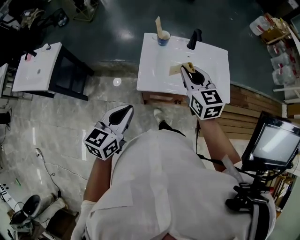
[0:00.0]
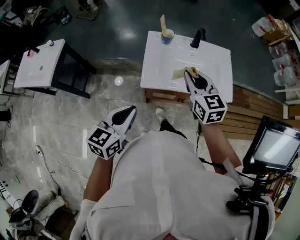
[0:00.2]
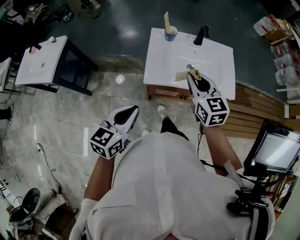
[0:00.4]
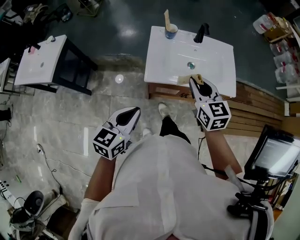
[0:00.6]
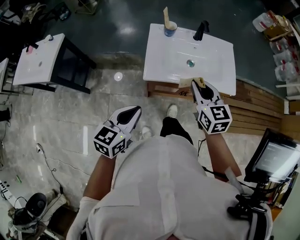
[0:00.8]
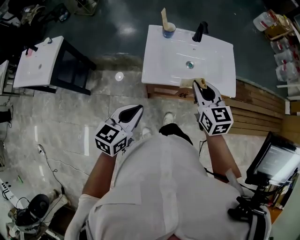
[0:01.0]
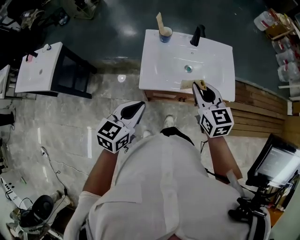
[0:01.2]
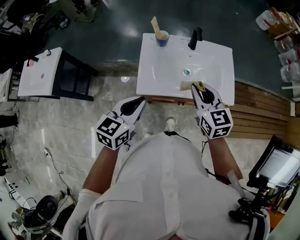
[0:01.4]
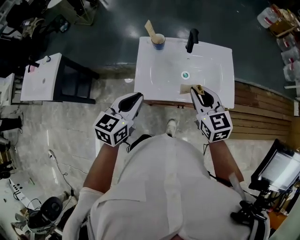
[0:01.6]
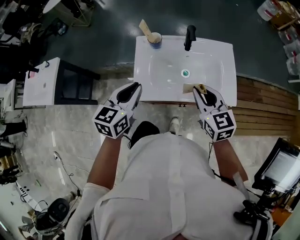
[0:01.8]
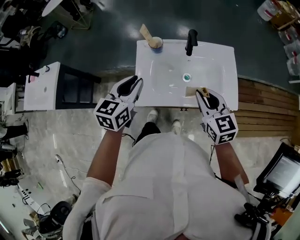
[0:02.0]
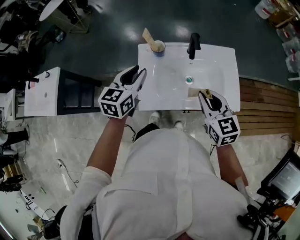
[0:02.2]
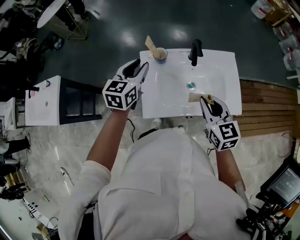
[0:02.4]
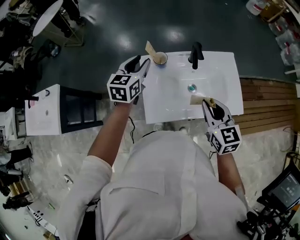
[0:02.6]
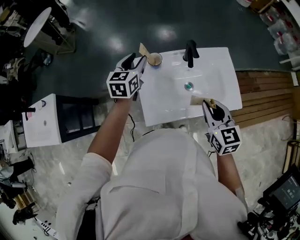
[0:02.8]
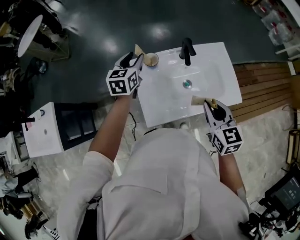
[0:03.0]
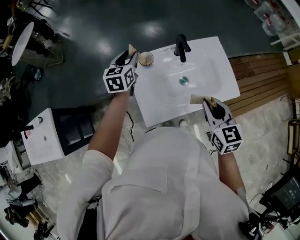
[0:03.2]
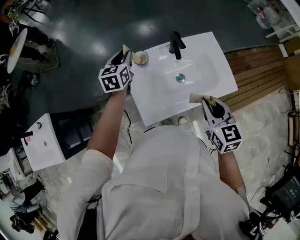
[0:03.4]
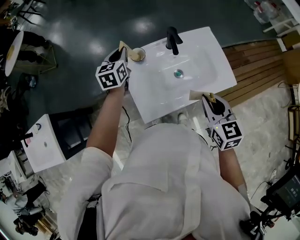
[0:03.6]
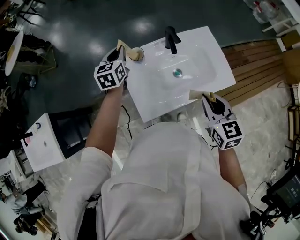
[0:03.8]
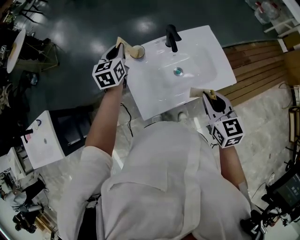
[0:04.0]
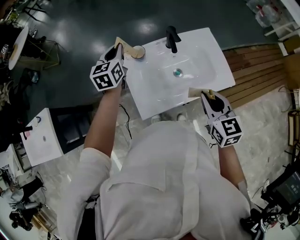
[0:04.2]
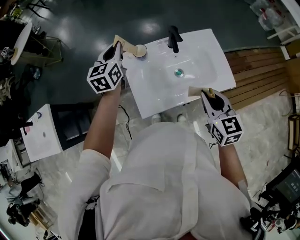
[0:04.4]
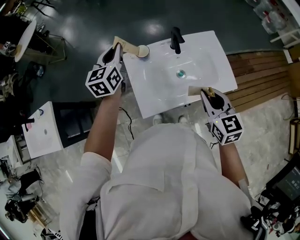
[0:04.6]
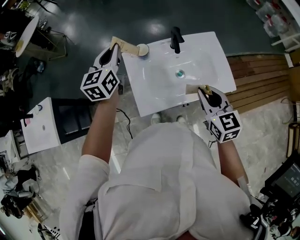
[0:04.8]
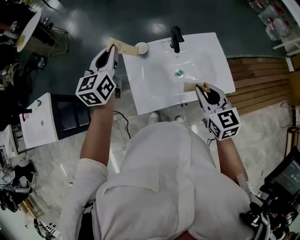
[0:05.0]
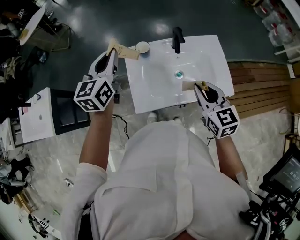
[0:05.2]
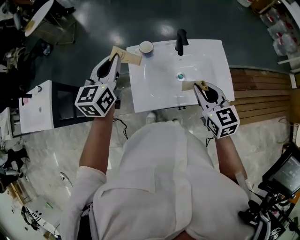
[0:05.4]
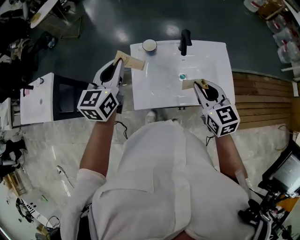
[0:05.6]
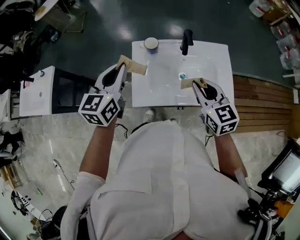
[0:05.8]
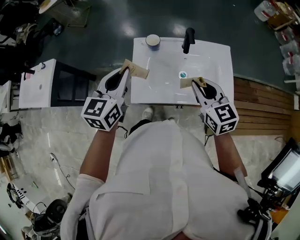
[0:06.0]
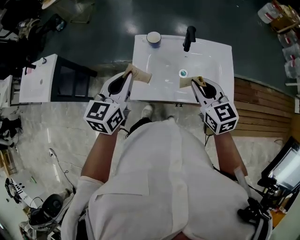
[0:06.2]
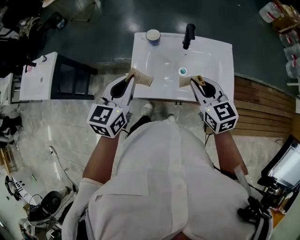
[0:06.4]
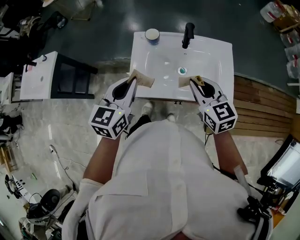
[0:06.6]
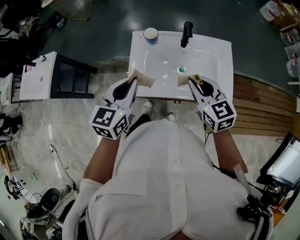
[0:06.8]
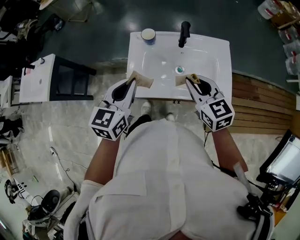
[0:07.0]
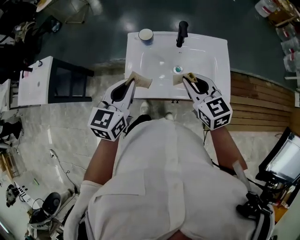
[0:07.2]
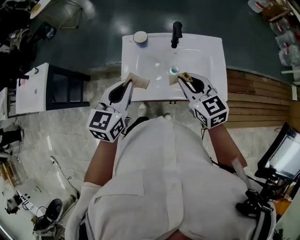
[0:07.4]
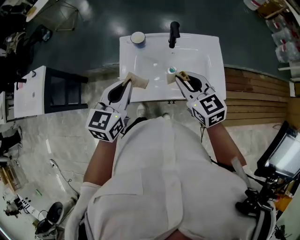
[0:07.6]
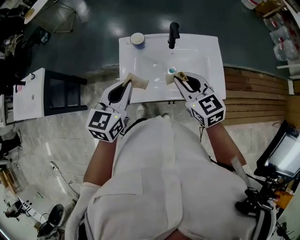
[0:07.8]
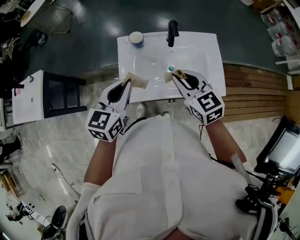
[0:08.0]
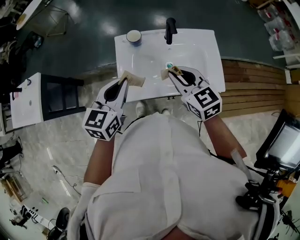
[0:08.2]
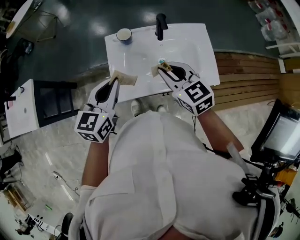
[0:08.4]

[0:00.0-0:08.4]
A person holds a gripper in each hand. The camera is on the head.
0:00.0 to 0:01.4: The right gripper shifts roughly 5 cm to the right, and reaches some 10 cm backward, then returns, while the left gripper shifts some 10 cm forward and to the right.
0:01.4 to 0:02.8: The right gripper is displaced forward by approximately 5 cm; the left gripper travels forward by roughly 35 cm, and opens up.
0:02.8 to 0:04.2: The left gripper closes up.
0:04.2 to 0:05.6: The left gripper goes roughly 20 cm backward and upward, while the right gripper shifts by approximately 5 cm, and rotates approximately 20 degrees.
0:05.6 to 0:07.0: The left gripper heads backward, covering about 15 cm.
0:07.0 to 0:08.4: The right gripper moves approximately 5 cm.

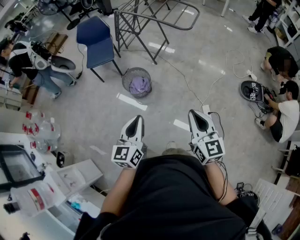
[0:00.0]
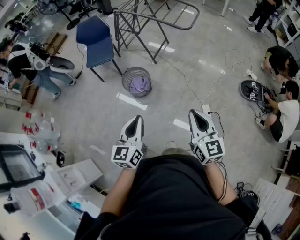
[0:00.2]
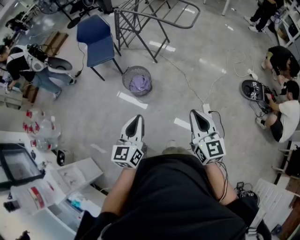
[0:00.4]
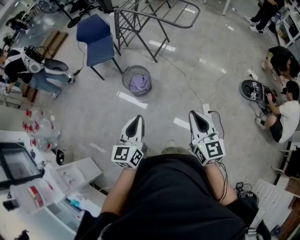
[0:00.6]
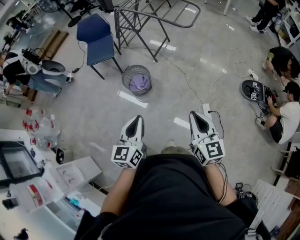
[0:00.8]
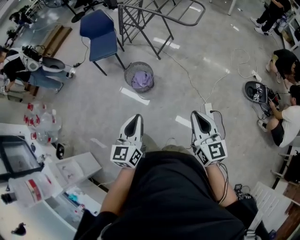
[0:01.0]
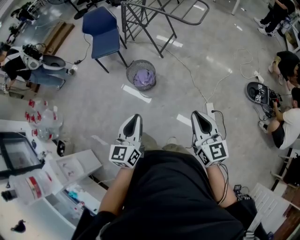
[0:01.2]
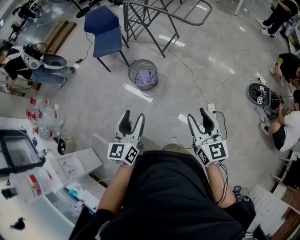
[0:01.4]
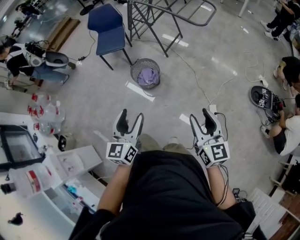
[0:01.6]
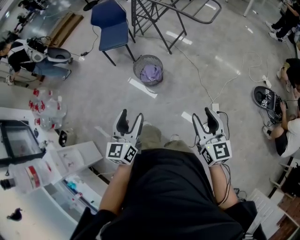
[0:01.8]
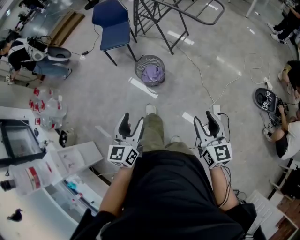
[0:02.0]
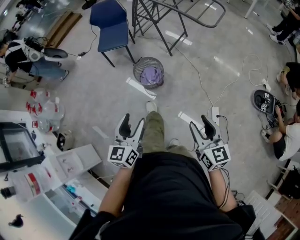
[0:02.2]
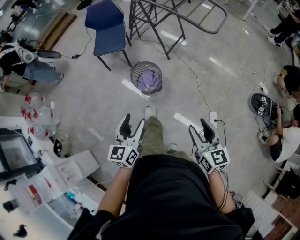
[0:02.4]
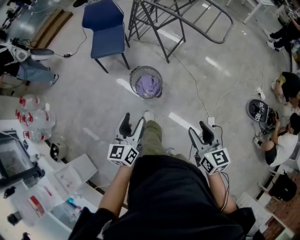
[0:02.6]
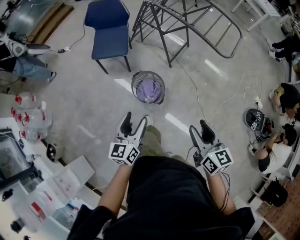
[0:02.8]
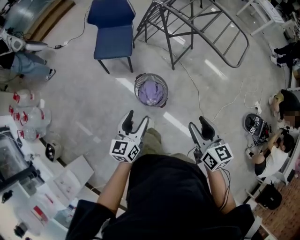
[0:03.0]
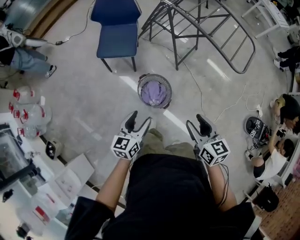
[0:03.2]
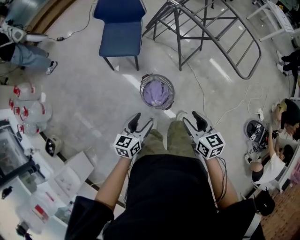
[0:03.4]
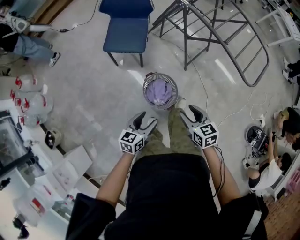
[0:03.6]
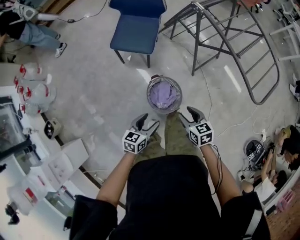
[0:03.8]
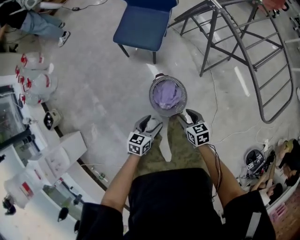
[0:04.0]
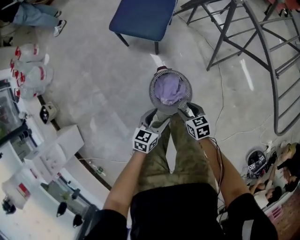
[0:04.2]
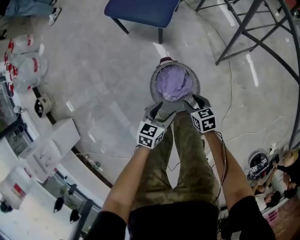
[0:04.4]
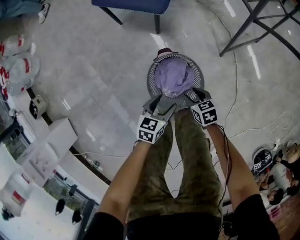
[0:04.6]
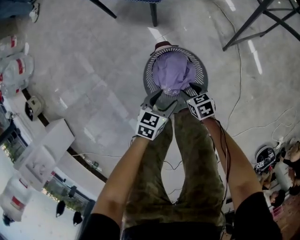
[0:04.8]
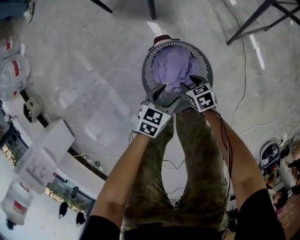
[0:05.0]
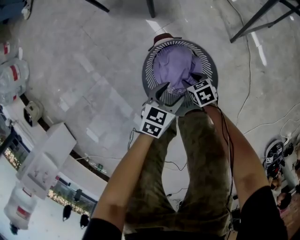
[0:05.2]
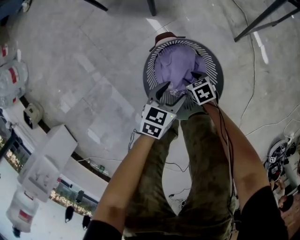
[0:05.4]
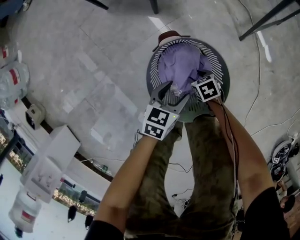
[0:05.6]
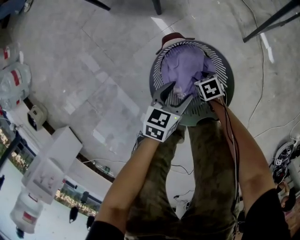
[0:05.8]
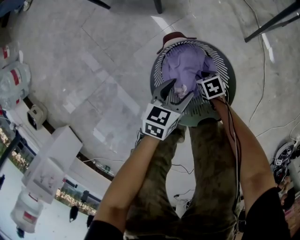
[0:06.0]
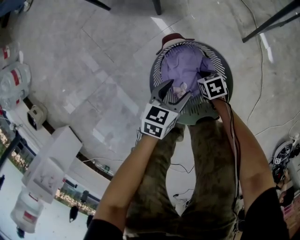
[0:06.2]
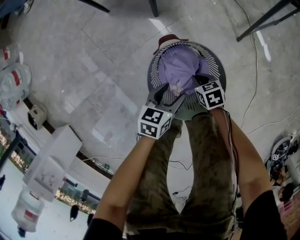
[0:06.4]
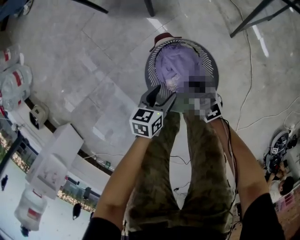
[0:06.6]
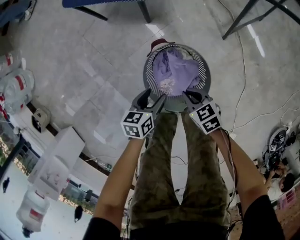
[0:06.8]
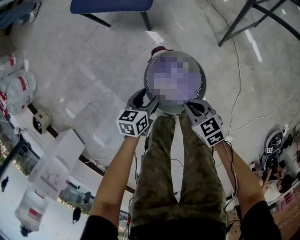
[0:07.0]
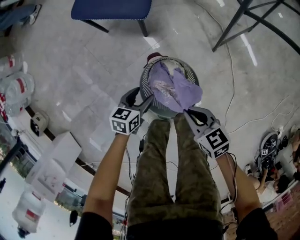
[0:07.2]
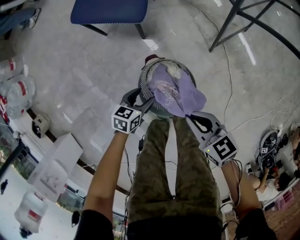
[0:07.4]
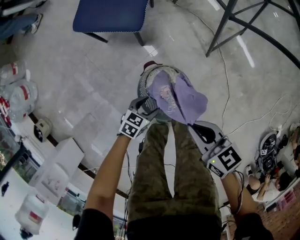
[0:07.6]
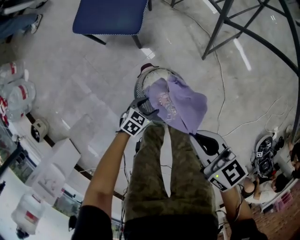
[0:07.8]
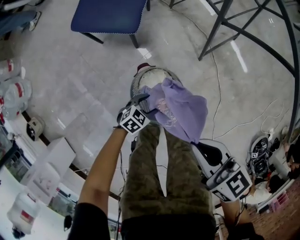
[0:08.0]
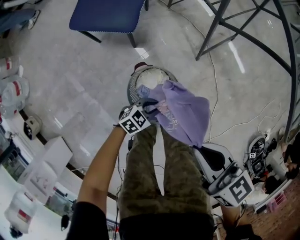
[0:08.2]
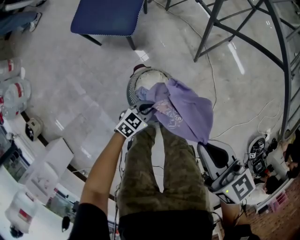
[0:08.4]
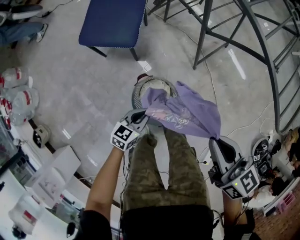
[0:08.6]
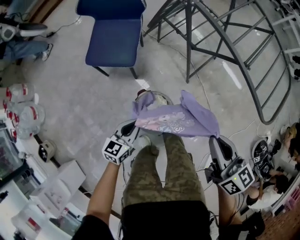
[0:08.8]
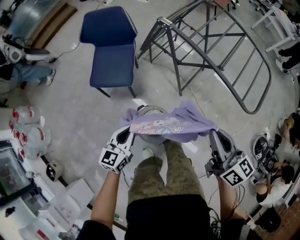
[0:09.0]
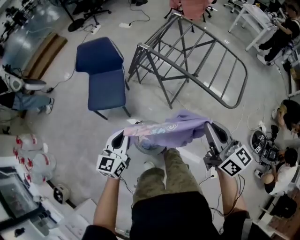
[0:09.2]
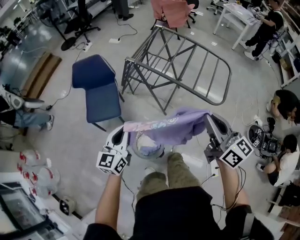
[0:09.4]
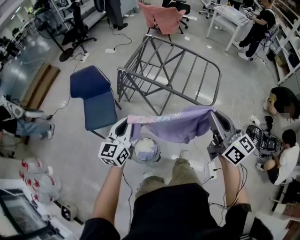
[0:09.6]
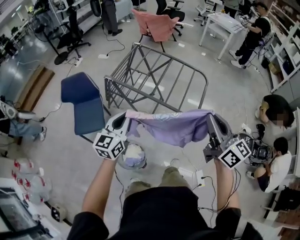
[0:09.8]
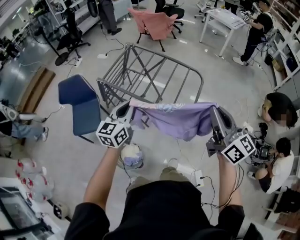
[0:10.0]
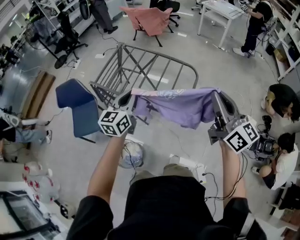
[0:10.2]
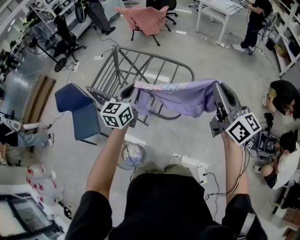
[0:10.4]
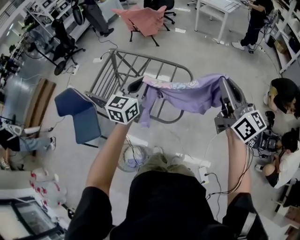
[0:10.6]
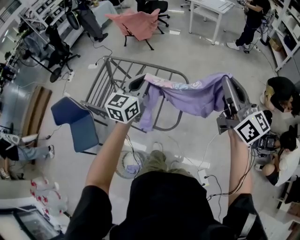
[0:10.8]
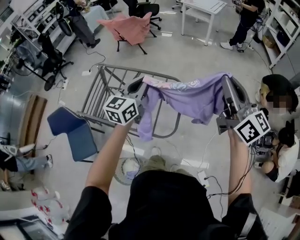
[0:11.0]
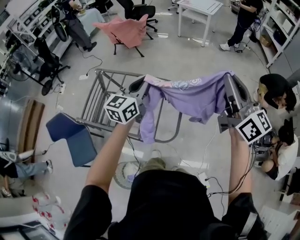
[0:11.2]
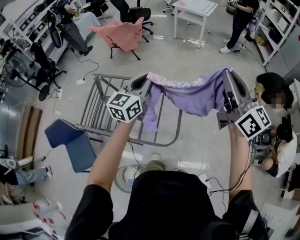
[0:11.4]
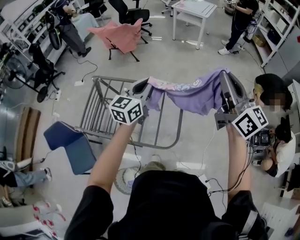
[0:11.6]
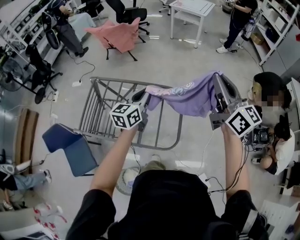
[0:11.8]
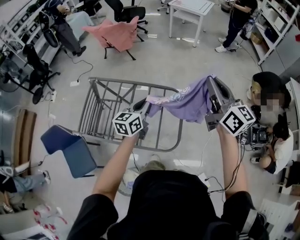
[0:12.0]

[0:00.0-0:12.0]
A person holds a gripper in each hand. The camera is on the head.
0:00.0 to 0:01.6: The left gripper opens. Meanwhile the right gripper opens up.
0:01.6 to 0:03.0: The two grippers go roughly 35 cm forward and to the left.
0:03.0 to 0:04.4: The left gripper heads downward, covering about 40 cm, and turns by about 30 degrees; the right gripper is displaced downward and forward by roughly 60 cm, and turns by about 50 degrees.
0:04.4 to 0:06.0: Both grippers move downward, approximately 30 cm. The right gripper turns by roughly 20 degrees, and closes its fingers.
0:06.0 to 0:07.6: The right gripper goes some 50 cm upward, points its fingers about 40 degrees further upward, and closes up. The left gripper shifts about 15 cm upward, and swivels about 20 degrees.
0:07.6 to 0:09.0: Both grippers travel together upward, roughly 40 cm. The left gripper tips its fingers upward by approximately 30 degrees, and closes up. The right gripper turns by some 40 degrees.
0:09.0 to 0:10.4: The pair of grippers is taken to the right, some 50 cm. The grippers both shift upward by roughly 30 cm. The left gripper turns by some 20 degrees, while the right gripper swivels approximately 30 degrees.
0:10.4 to 0:12.0: The grippers both shift forward by some 20 cm. The left gripper rotates about 20 degrees.

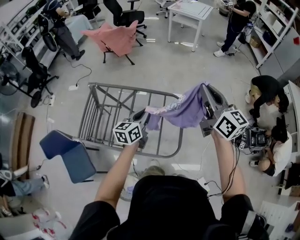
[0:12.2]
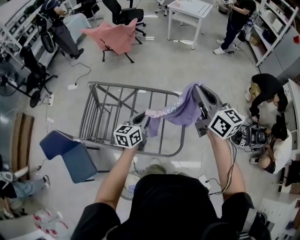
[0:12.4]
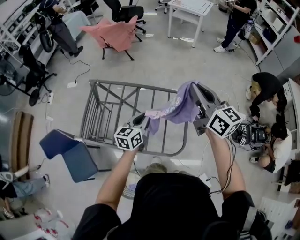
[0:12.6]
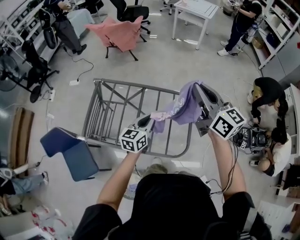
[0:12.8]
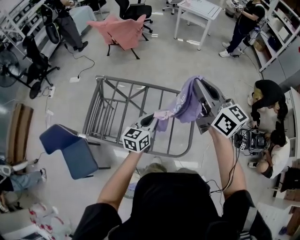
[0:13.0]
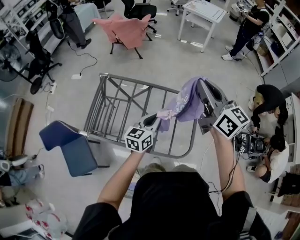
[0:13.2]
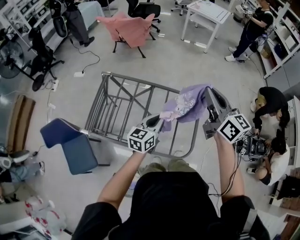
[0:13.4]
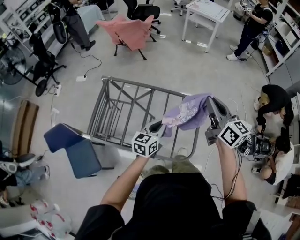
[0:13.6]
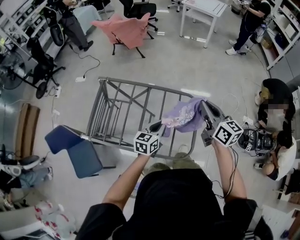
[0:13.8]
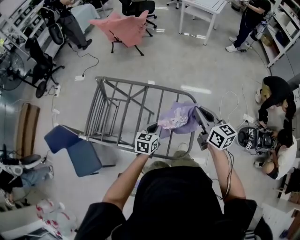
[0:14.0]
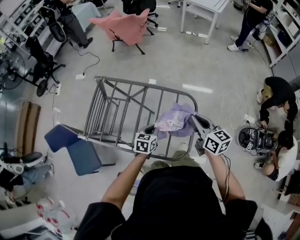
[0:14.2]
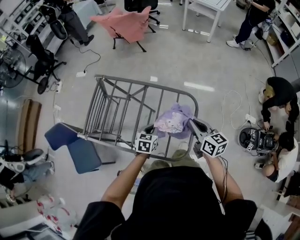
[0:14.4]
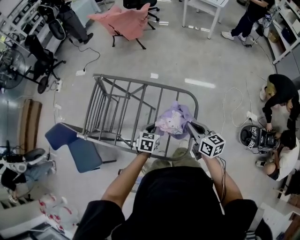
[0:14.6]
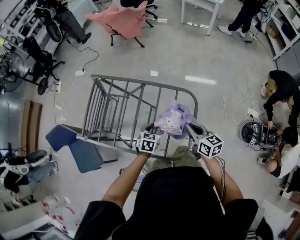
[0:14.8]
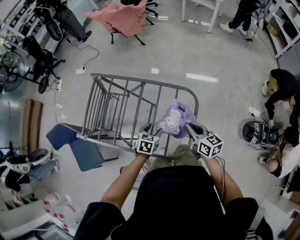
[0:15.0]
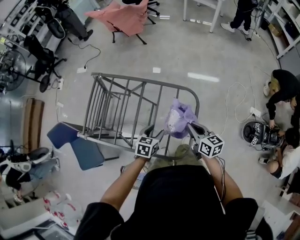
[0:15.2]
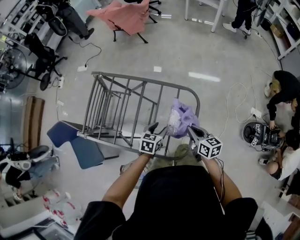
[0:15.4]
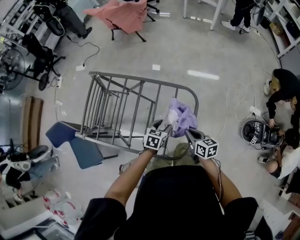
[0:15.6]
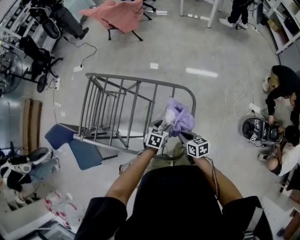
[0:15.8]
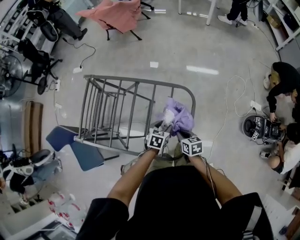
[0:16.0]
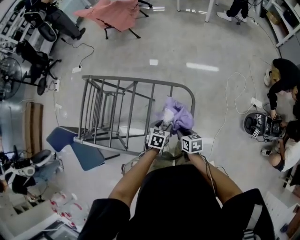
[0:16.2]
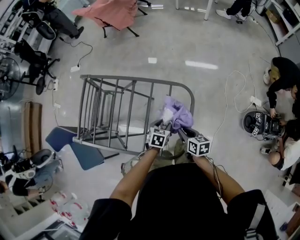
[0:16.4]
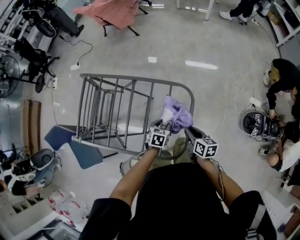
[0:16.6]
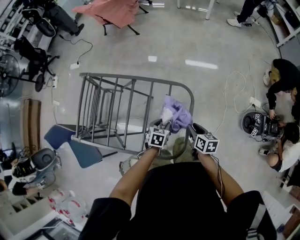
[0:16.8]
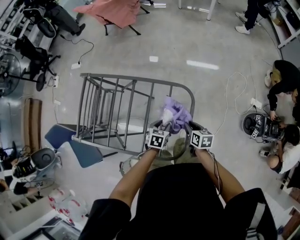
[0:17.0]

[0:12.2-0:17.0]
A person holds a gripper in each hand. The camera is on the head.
0:12.2 to 0:13.8: The left gripper travels downward by some 10 cm, while the right gripper heads downward and to the left, covering roughly 15 cm.
0:13.8 to 0:15.4: The left gripper goes approximately 10 cm downward, turns by approximately 20 degrees, and opens its fingers; the right gripper heads downward, covering roughly 25 cm, and swivels approximately 20 degrees.
0:15.4 to 0:17.0: The left gripper heads downward and to the right, covering about 10 cm, while the right gripper swings up and down, roughly 10 cm each way, with 2 reversals, swivels approximately 20 degrees, and opens up.
